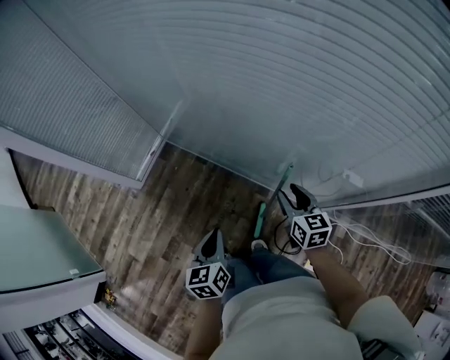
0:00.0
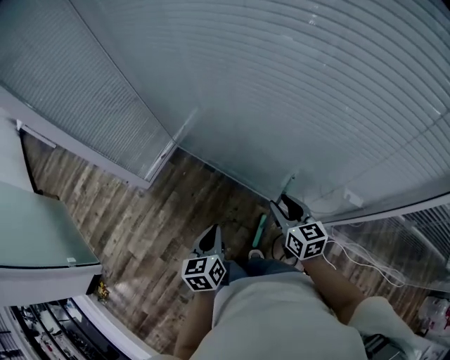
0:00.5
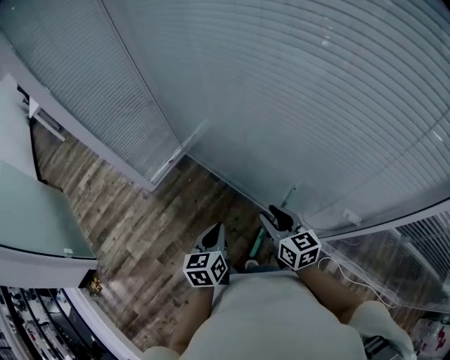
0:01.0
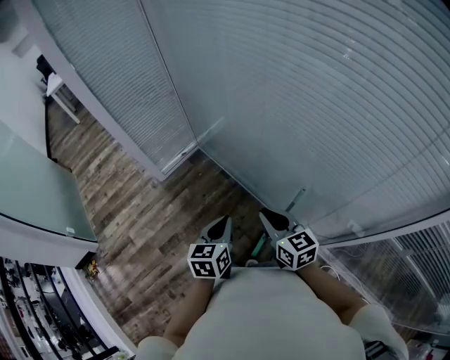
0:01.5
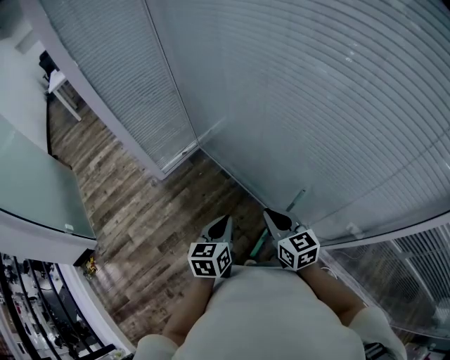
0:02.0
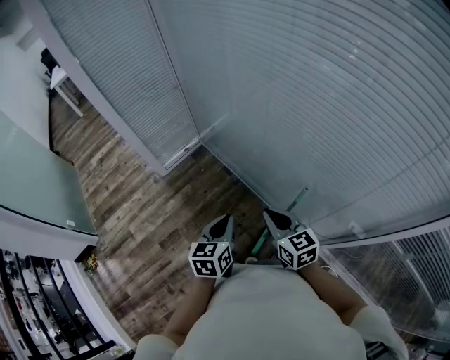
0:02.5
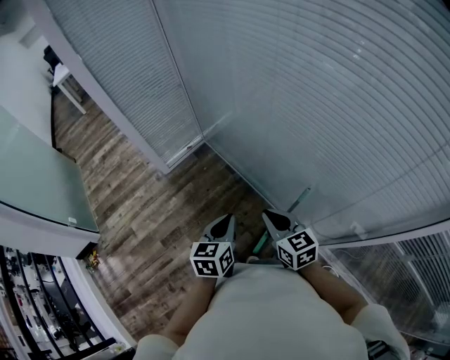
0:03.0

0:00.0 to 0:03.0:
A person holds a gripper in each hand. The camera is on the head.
0:00.0 to 0:01.5: The right gripper goes approximately 15 cm to the left and upward, swivels some 30 degrees, and closes, while the left gripper shifts roughly 5 cm upward.
0:01.5 to 0:03.0: The grippers make only small movements.

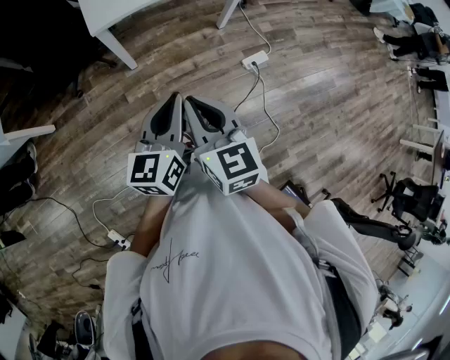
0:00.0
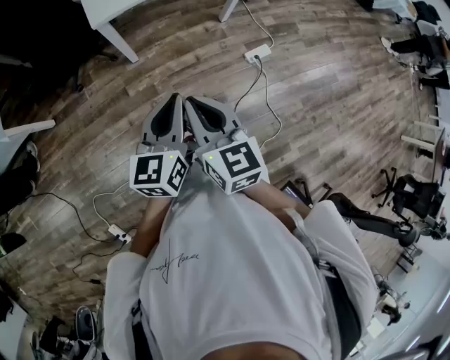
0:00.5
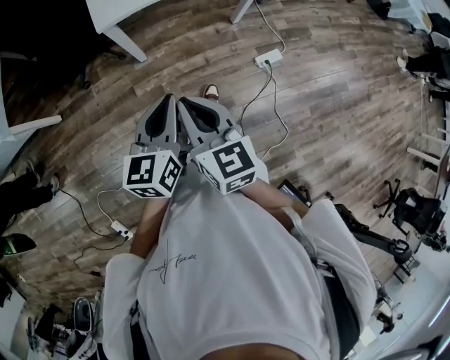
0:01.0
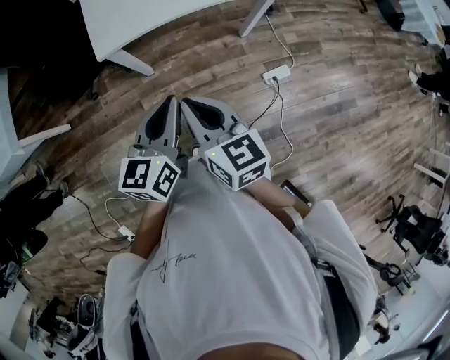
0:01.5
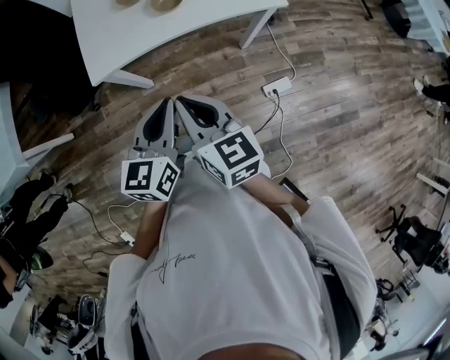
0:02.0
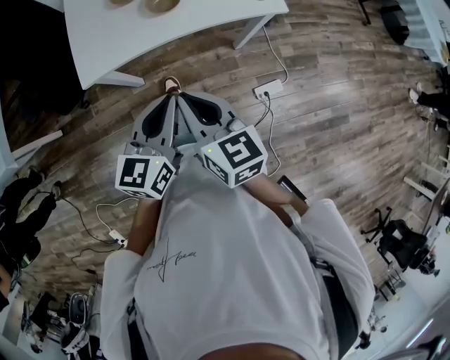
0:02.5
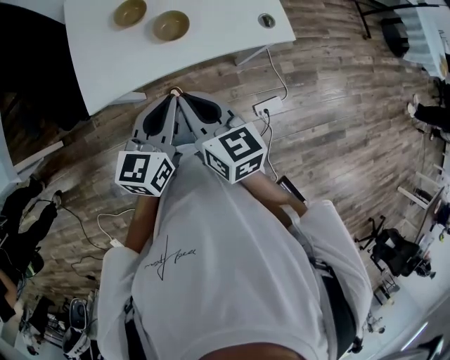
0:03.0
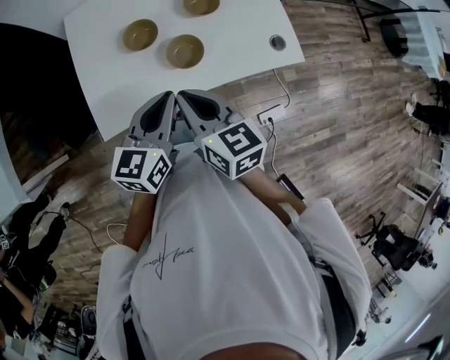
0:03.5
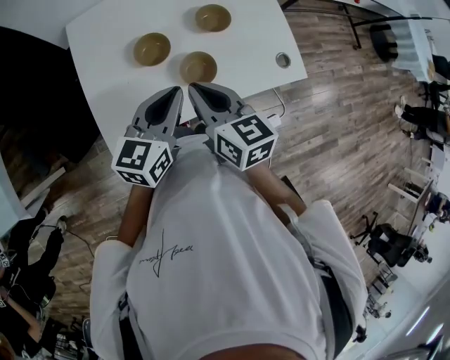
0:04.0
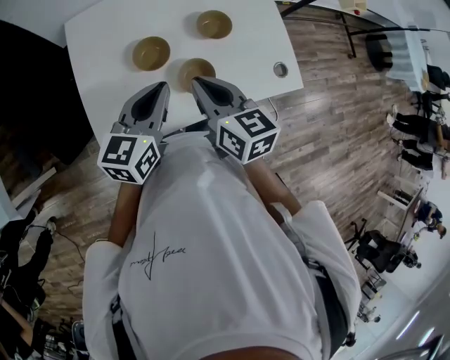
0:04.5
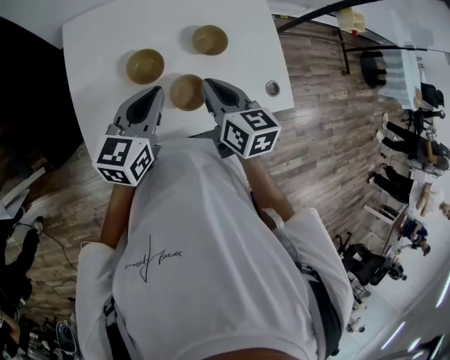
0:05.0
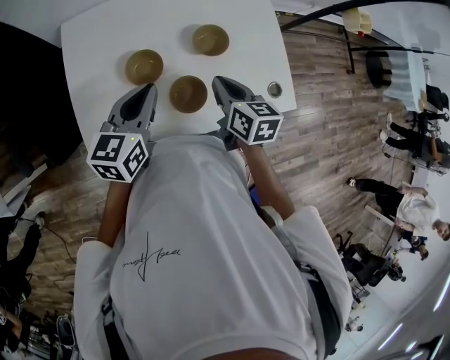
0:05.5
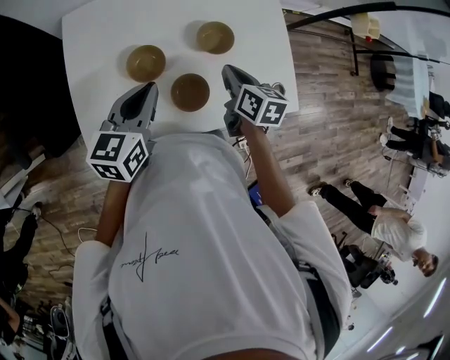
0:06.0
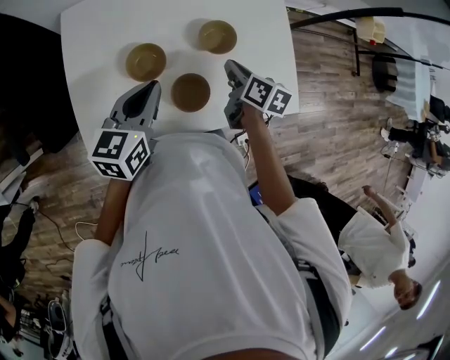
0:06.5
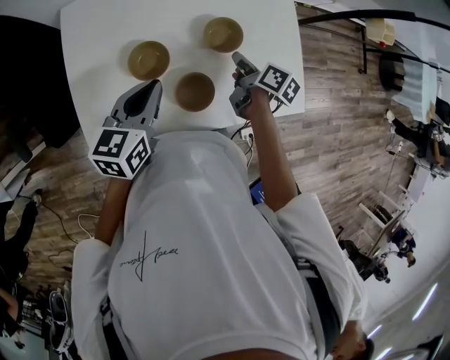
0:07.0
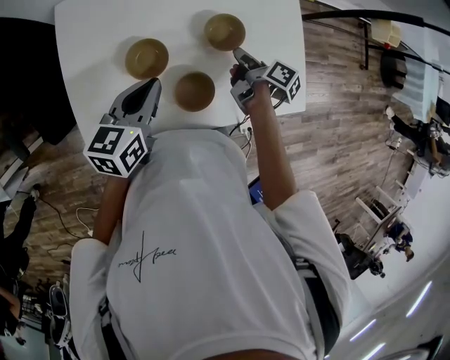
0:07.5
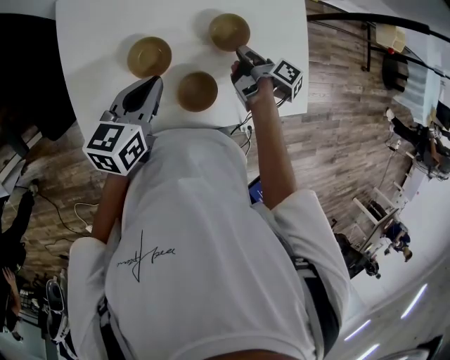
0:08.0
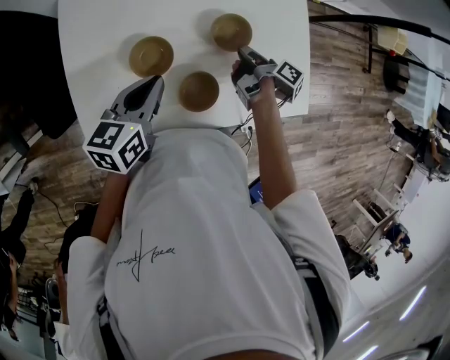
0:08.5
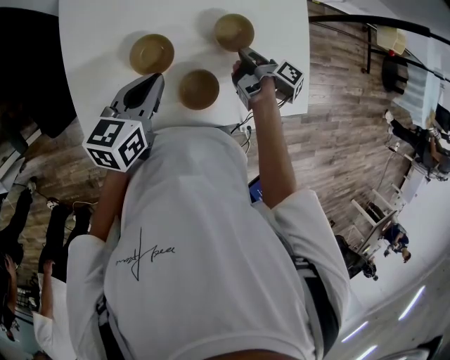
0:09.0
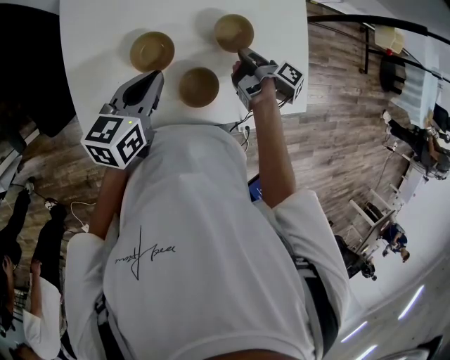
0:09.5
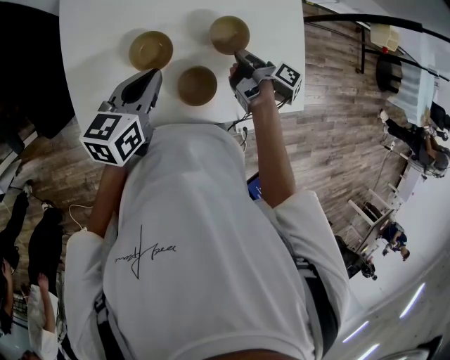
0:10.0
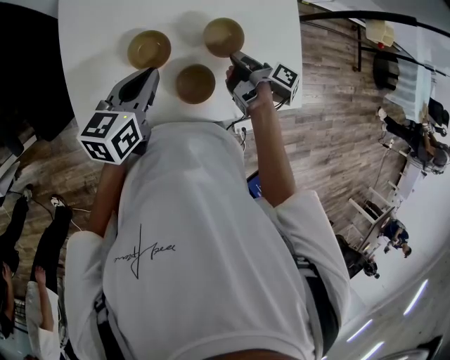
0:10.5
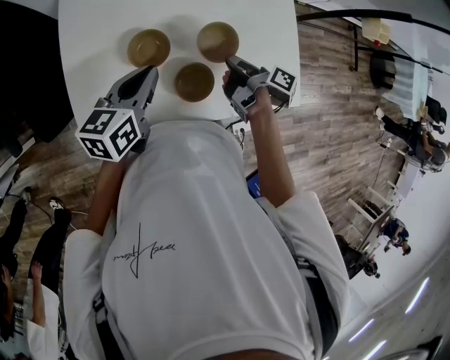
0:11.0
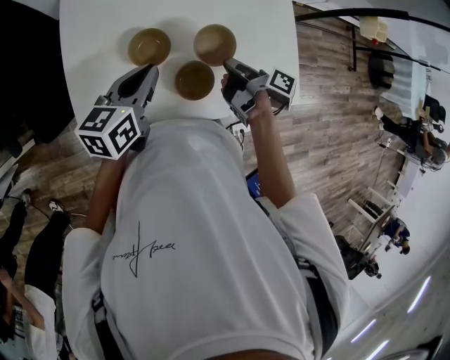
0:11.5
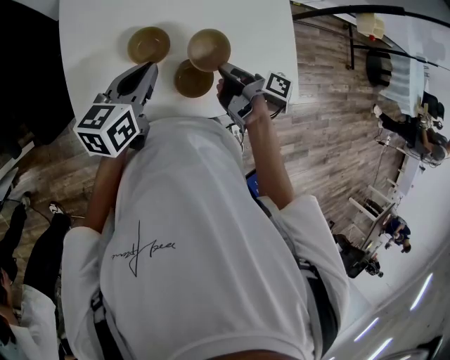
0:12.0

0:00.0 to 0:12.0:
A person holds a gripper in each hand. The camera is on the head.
0:00.0 to 0:02.0: The grippers both shift forward by roughly 25 cm.
0:02.0 to 0:04.0: Both grippers travel together forward, some 30 cm.
0:04.0 to 0:06.0: The left gripper travels forward by roughly 10 cm. Meanwhile the right gripper moves forward, to the right and downward, some 20 cm.
0:06.0 to 0:08.0: The right gripper travels downward and forward by about 10 cm, and twists some 60 degrees clockwise, seen from behind.
0:08.0 to 0:10.0: The grippers make only small movements.
0:10.0 to 0:12.0: The right gripper is displaced backward by roughly 5 cm.

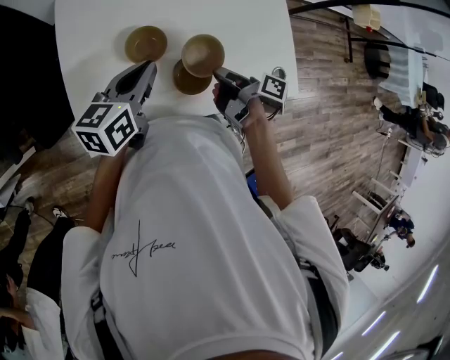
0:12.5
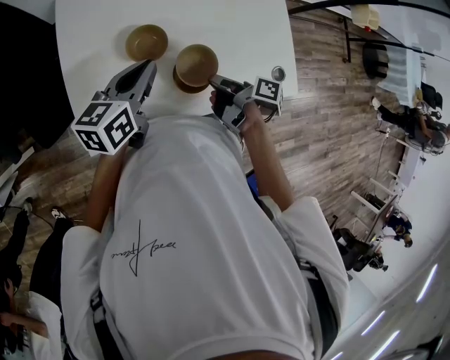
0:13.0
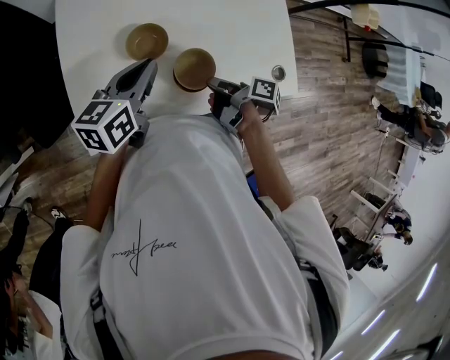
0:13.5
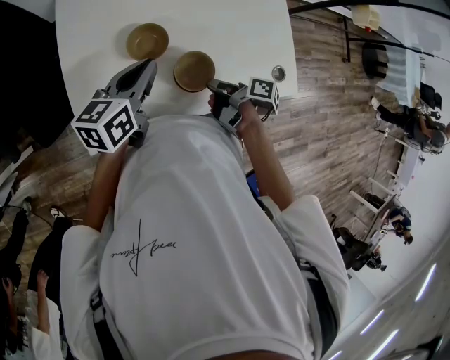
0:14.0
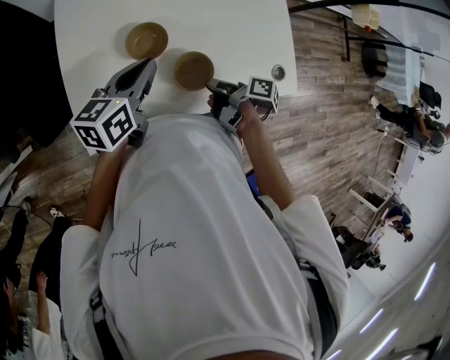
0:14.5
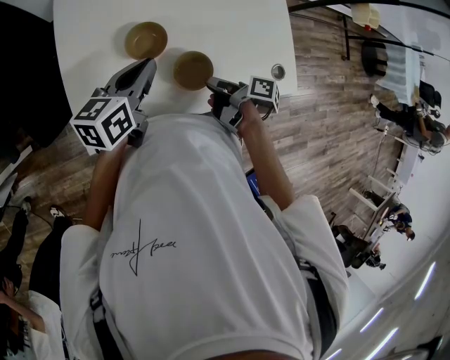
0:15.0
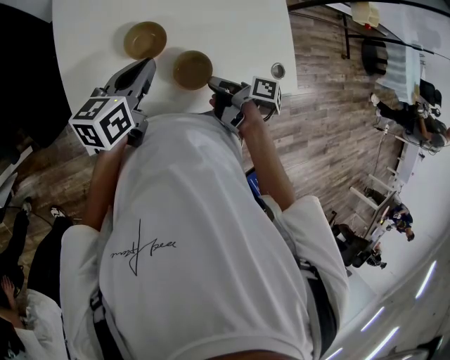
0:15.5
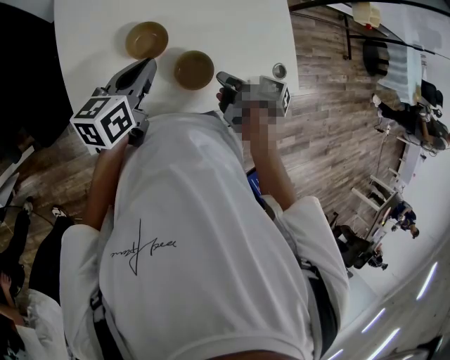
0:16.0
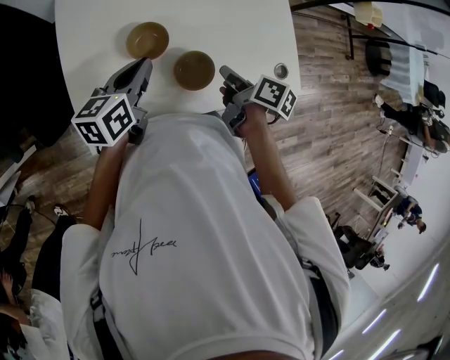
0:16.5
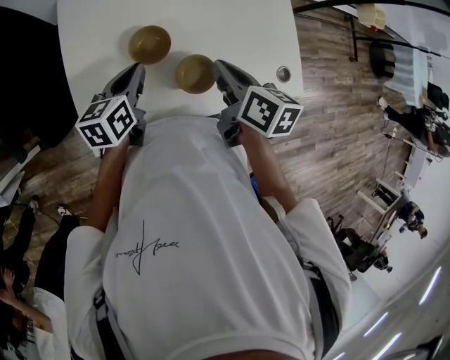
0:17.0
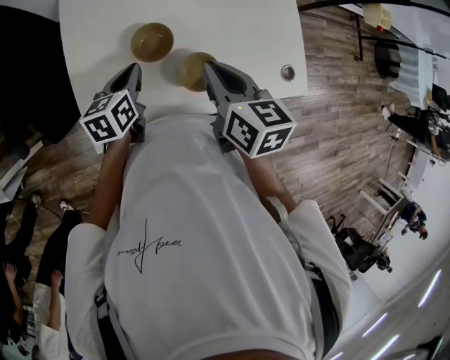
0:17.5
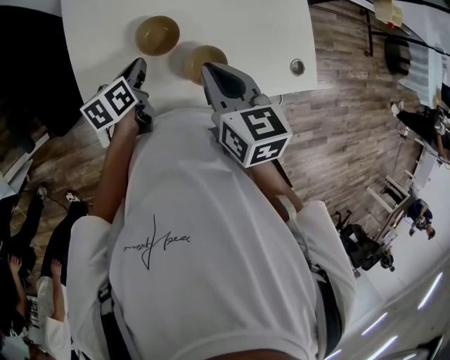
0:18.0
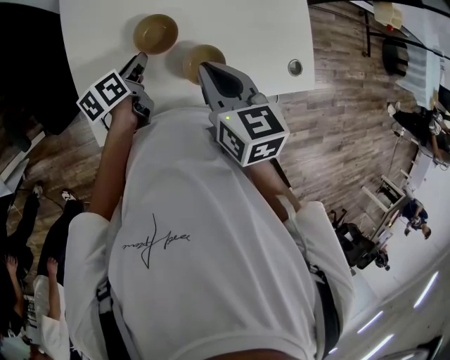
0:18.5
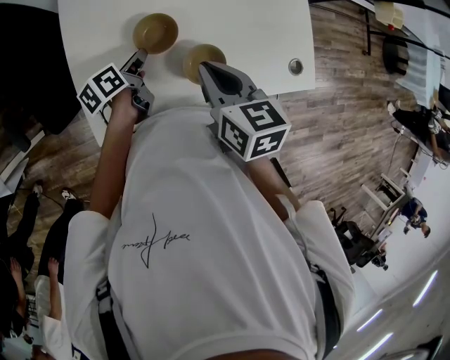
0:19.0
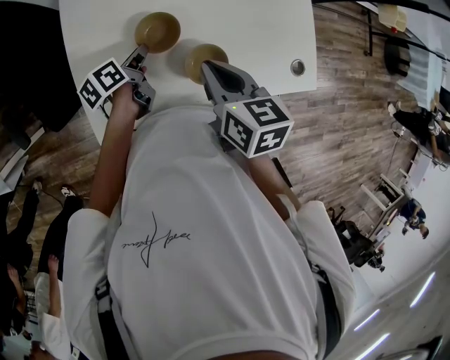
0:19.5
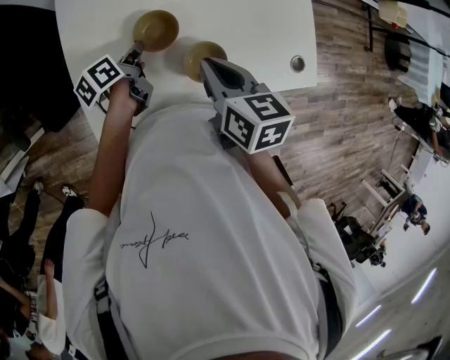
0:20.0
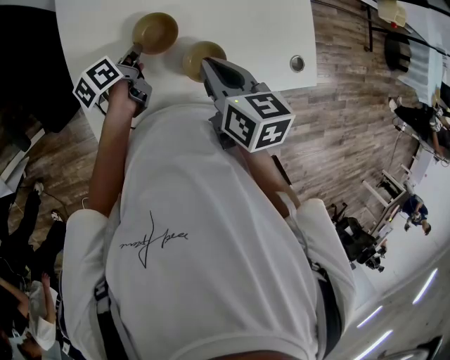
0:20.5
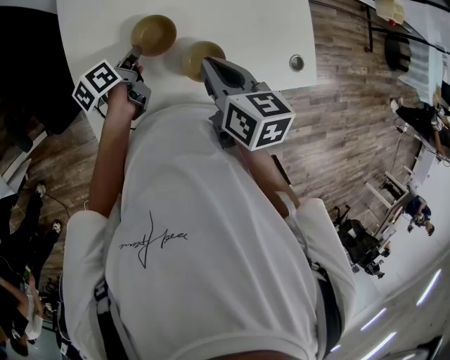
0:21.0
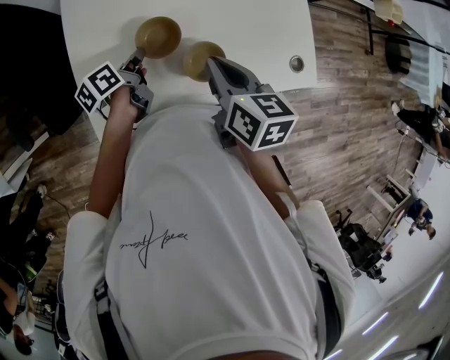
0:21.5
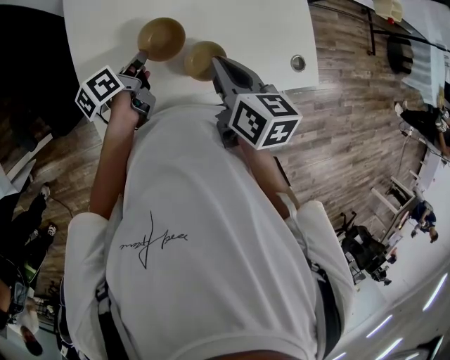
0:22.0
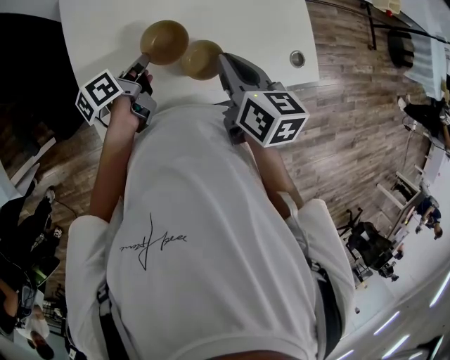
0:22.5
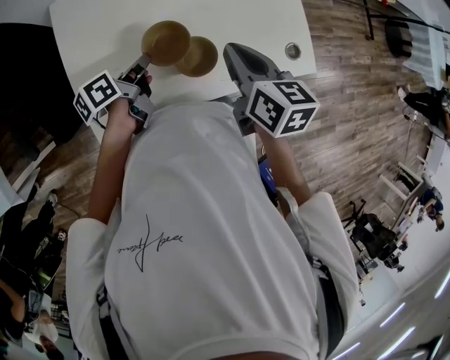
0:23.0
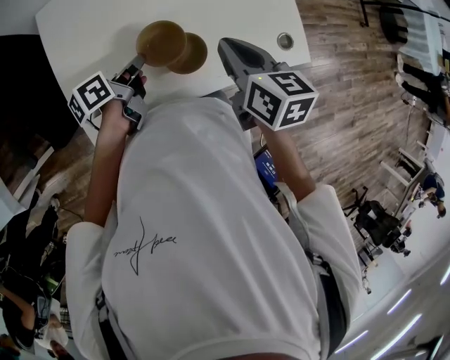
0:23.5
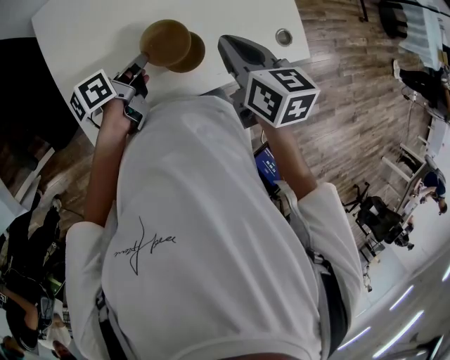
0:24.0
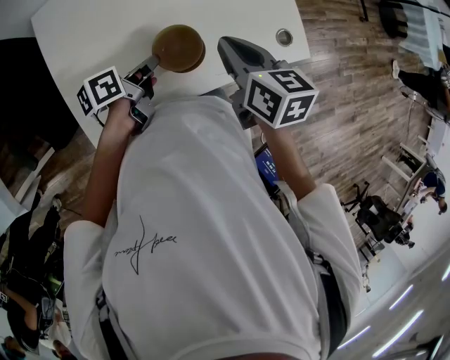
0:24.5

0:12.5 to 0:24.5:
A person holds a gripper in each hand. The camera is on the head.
0:12.5 to 0:14.5: The right gripper heads backward, covering approximately 5 cm.
0:14.5 to 0:16.5: The right gripper shifts about 5 cm upward, and changes its angle by about 30 degrees.
0:16.5 to 0:18.5: The left gripper moves downward, roughly 10 cm, and rotates approximately 30 degrees. The right gripper heads to the left and upward, covering approximately 15 cm, and twists approximately 50 degrees counterclockwise, seen from behind.
0:18.5 to 0:20.5: The grippers make only small movements.
0:20.5 to 0:22.5: The left gripper travels upward by approximately 5 cm.
0:22.5 to 0:24.5: The left gripper goes roughly 10 cm to the right, and changes its angle by approximately 20 degrees.
